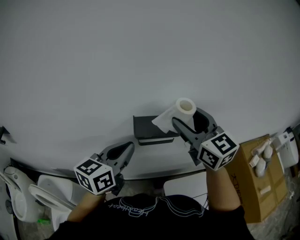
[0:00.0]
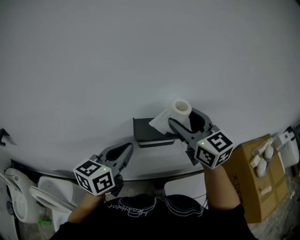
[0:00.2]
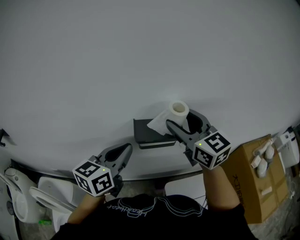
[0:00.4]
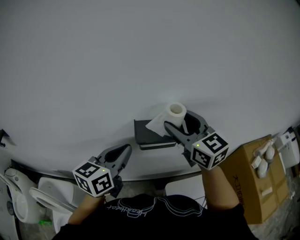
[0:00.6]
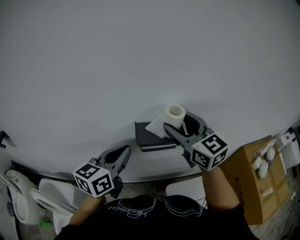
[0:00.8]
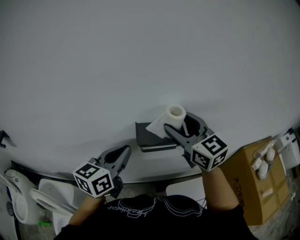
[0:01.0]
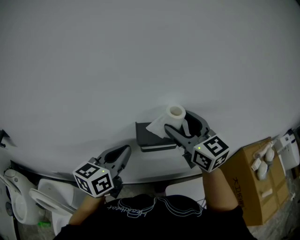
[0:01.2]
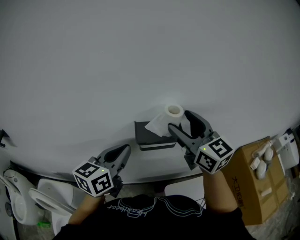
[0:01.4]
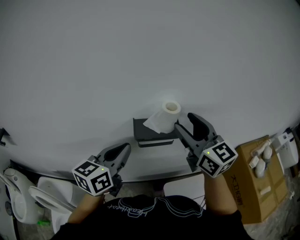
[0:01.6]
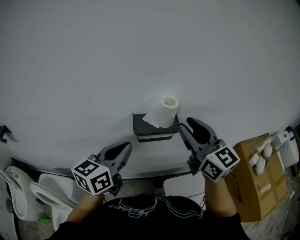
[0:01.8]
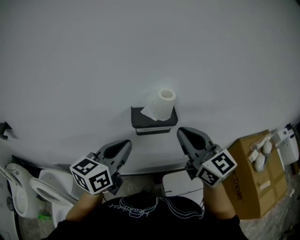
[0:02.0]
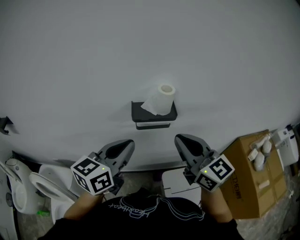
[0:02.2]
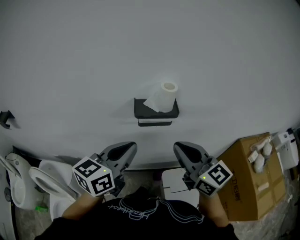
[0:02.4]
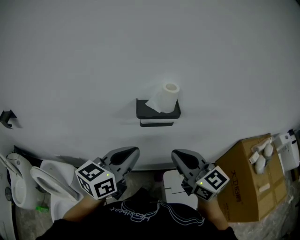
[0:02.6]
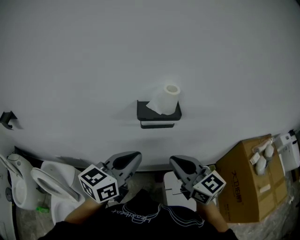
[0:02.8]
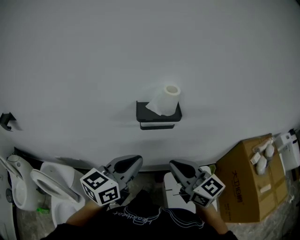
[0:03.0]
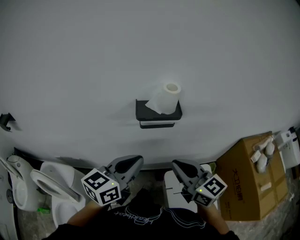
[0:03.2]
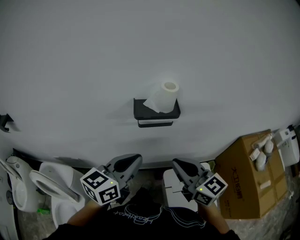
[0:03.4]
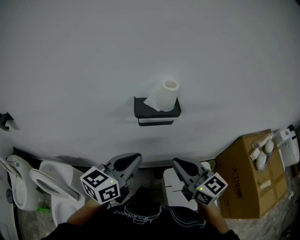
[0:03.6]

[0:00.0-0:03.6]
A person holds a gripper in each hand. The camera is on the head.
0:00.0 to 0:01.8: The right gripper moves about 5 cm.
0:01.8 to 0:03.6: The right gripper heads downward and backward, covering approximately 20 cm. Meanwhile the left gripper travels backward by some 10 cm.

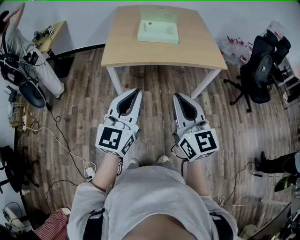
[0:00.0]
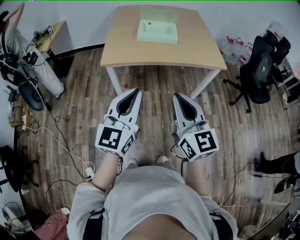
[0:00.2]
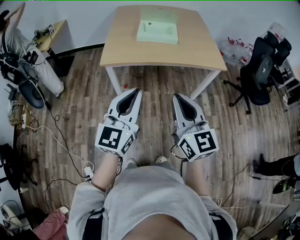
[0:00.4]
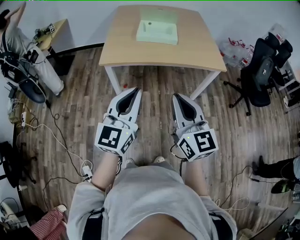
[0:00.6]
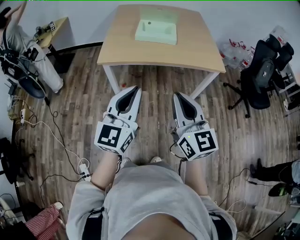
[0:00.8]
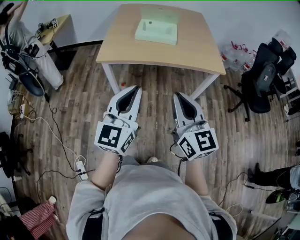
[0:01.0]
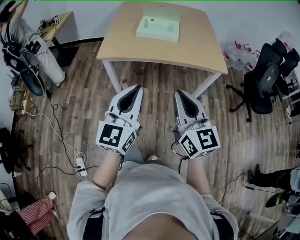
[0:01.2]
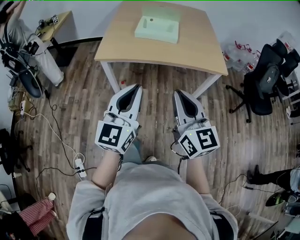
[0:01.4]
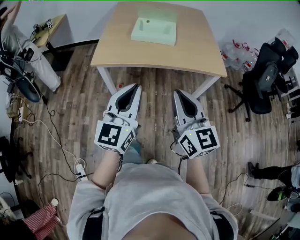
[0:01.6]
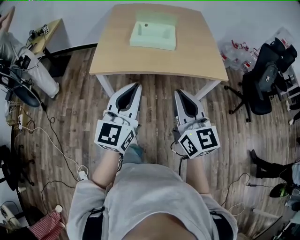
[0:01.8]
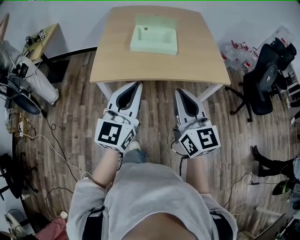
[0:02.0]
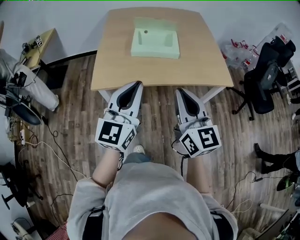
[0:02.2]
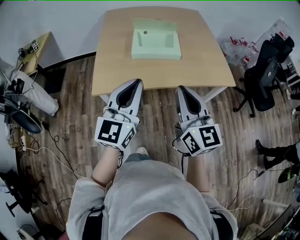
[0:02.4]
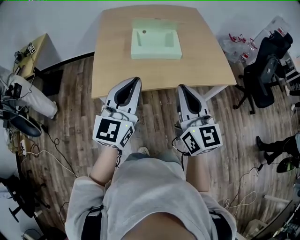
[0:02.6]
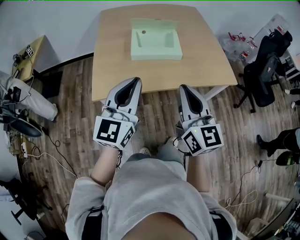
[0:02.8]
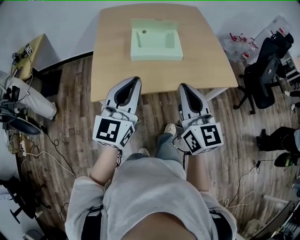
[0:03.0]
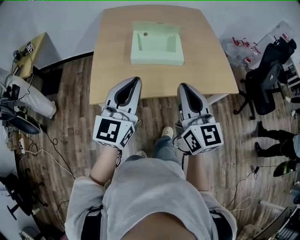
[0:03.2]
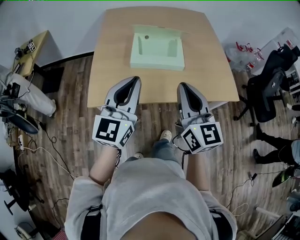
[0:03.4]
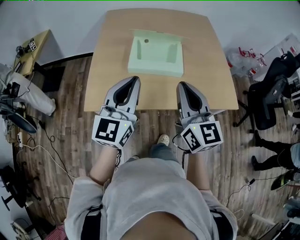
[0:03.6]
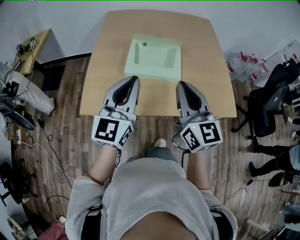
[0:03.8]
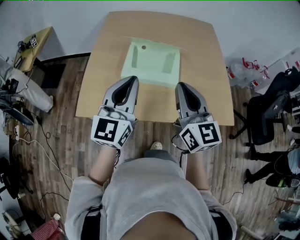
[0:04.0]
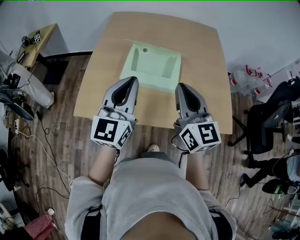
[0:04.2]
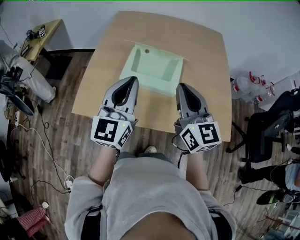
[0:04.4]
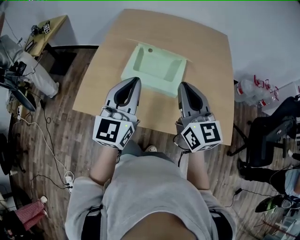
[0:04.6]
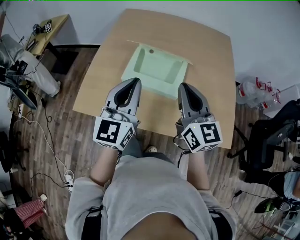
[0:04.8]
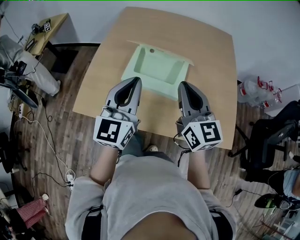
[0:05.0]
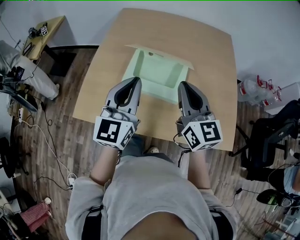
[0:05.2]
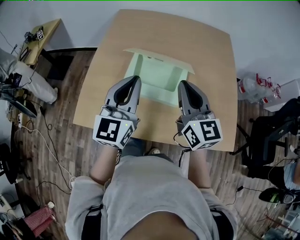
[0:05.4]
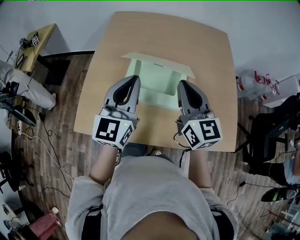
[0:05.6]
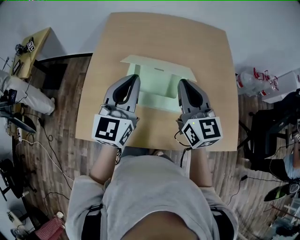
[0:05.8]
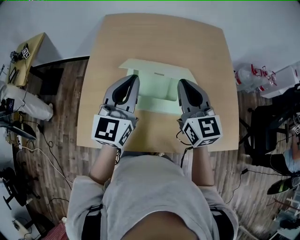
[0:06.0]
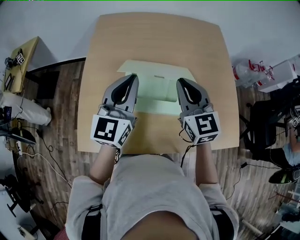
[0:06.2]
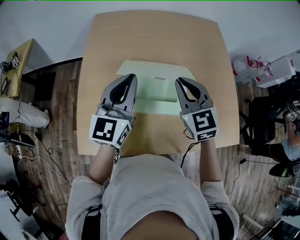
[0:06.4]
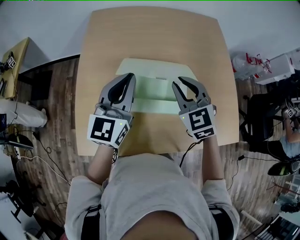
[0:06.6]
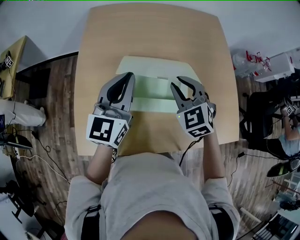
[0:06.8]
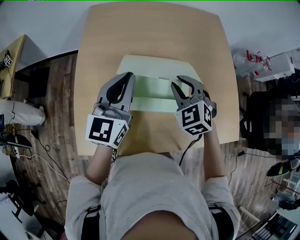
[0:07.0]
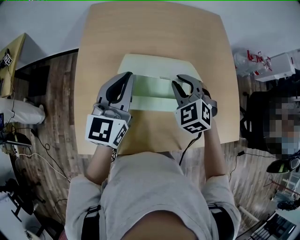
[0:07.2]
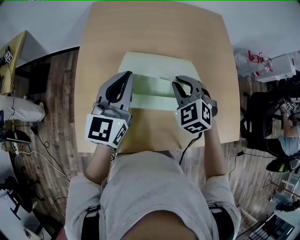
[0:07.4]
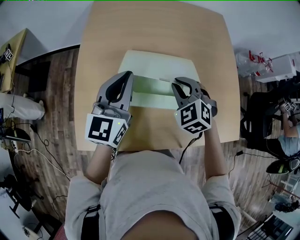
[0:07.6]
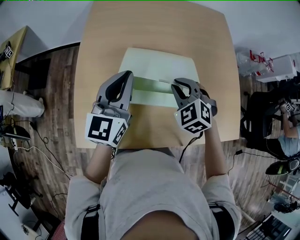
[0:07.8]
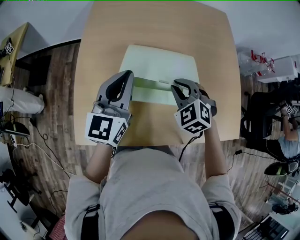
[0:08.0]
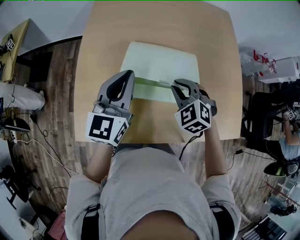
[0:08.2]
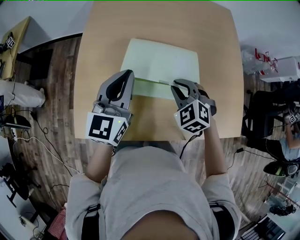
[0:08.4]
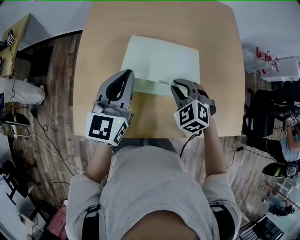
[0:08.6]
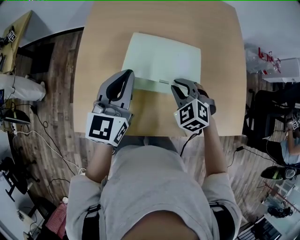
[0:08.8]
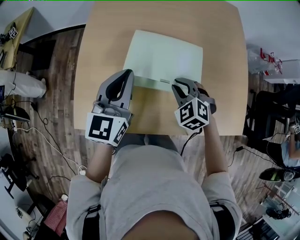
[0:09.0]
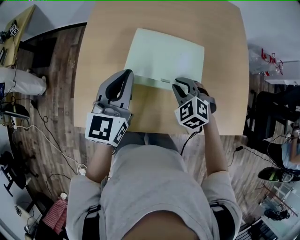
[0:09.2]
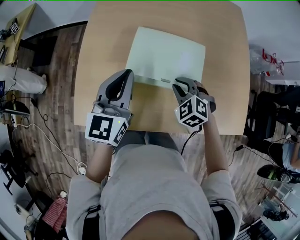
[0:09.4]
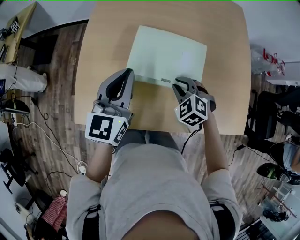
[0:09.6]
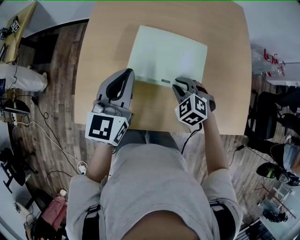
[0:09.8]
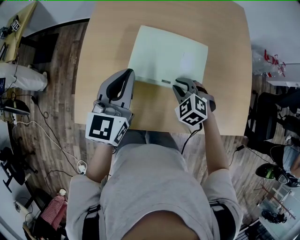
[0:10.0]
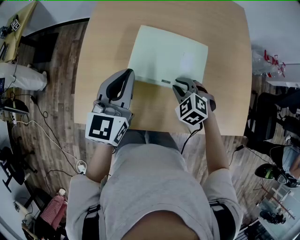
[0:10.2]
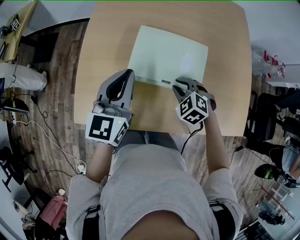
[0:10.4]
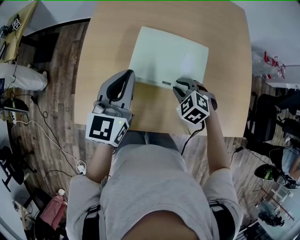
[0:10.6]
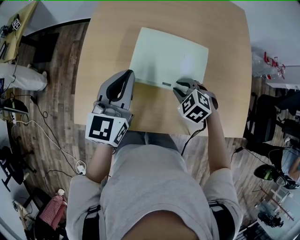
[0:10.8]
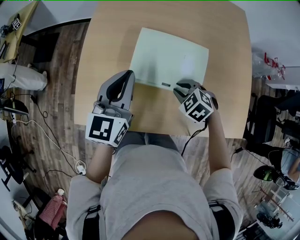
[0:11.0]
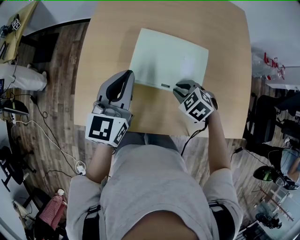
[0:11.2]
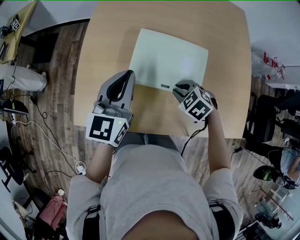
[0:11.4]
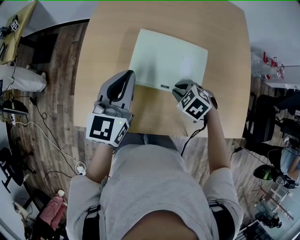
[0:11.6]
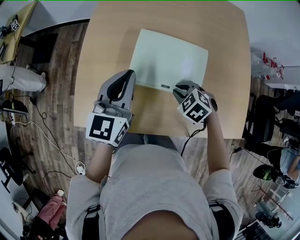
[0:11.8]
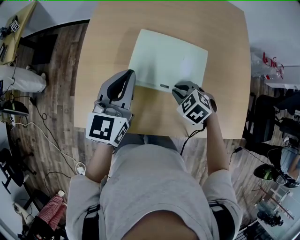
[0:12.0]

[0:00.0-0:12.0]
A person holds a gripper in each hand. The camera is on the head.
0:00.0 to 0:01.6: The grippers both shift forward and to the right by roughly 10 cm.
0:01.6 to 0:03.0: The two grippers go about 25 cm forward and to the left.
0:03.0 to 0:04.4: Both grippers move forward and to the right, some 25 cm.
0:04.4 to 0:06.0: Both grippers move forward, some 15 cm.
0:06.0 to 0:07.6: The right gripper goes roughly 15 cm downward, and tilts its fingers some 40 degrees downward; the left gripper shifts by about 5 cm.
0:07.6 to 0:09.0: The right gripper moves downward and backward, about 10 cm. Meanwhile the left gripper shifts some 5 cm backward.
0:09.0 to 0:10.4: There are only small adjustments of the grippers.
0:10.4 to 0:12.0: There are only small adjustments of the grippers.

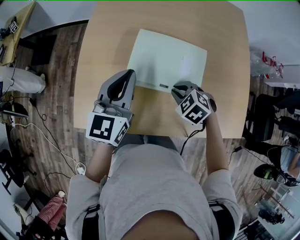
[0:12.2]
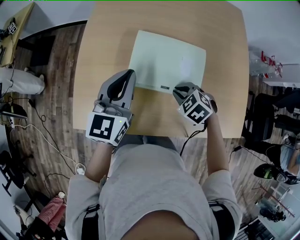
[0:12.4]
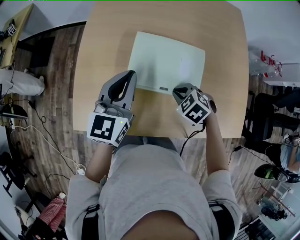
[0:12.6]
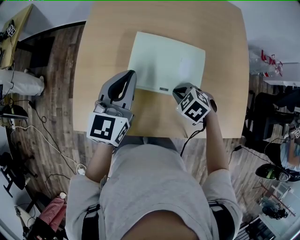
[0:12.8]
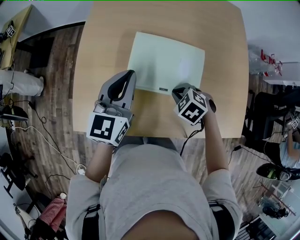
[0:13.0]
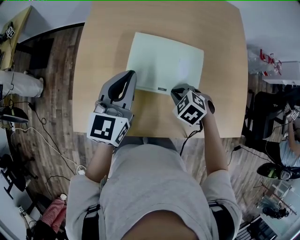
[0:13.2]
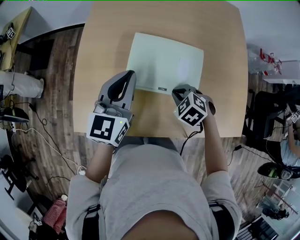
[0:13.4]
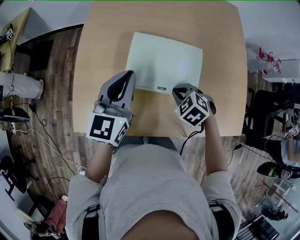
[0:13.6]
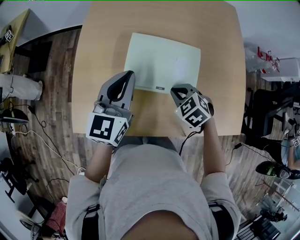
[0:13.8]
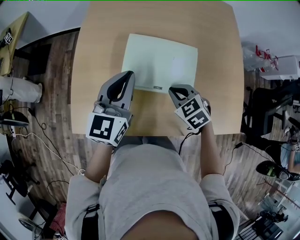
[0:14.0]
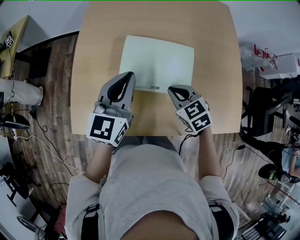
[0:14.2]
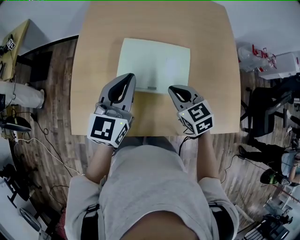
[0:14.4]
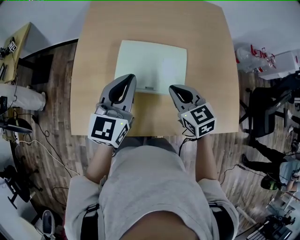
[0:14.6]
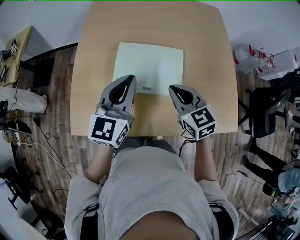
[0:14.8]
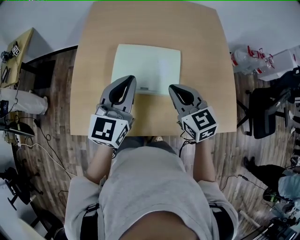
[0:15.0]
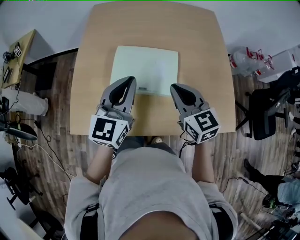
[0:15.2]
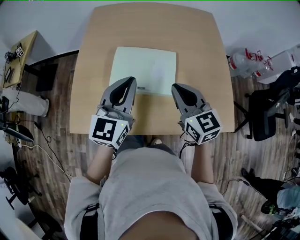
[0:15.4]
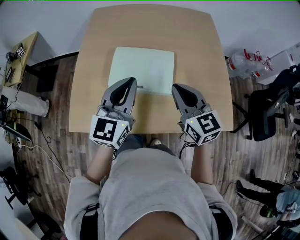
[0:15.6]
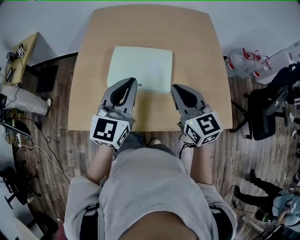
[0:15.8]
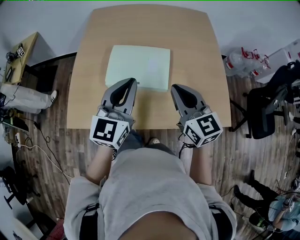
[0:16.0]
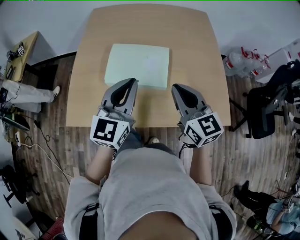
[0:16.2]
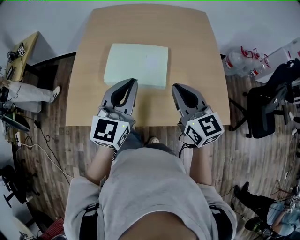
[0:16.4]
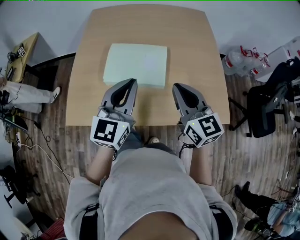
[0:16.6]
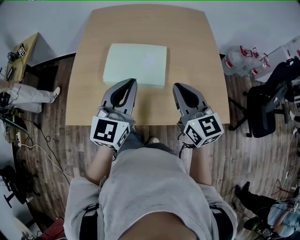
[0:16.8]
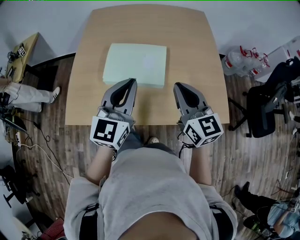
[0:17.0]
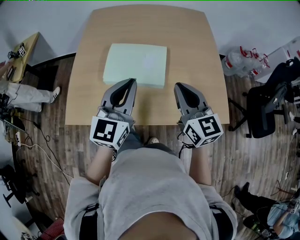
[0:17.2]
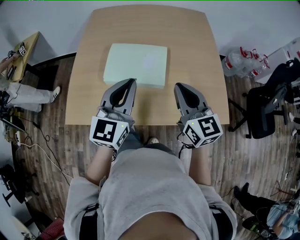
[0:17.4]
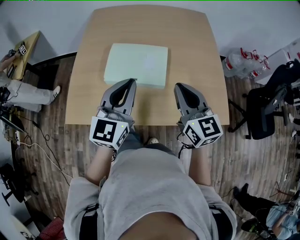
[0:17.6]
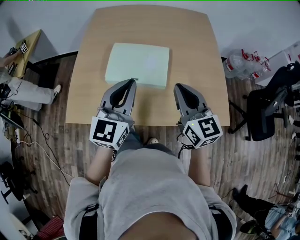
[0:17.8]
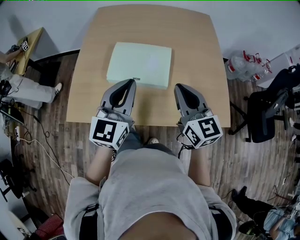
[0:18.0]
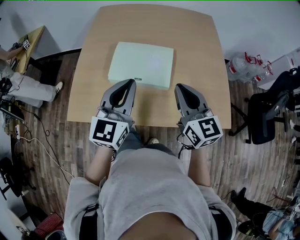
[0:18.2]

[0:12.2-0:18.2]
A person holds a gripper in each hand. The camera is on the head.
0:12.2 to 0:13.8: There are only small adjustments of the grippers.
0:13.8 to 0:15.2: The right gripper shifts some 15 cm upward, and tips its fingers upward by roughly 40 degrees. Meanwhile the left gripper heads to the right, backward and upward, covering roughly 10 cm.
0:15.2 to 0:16.6: Both grippers move backward and to the right, roughly 10 cm.
0:16.6 to 0:18.2: The grippers make only small movements.

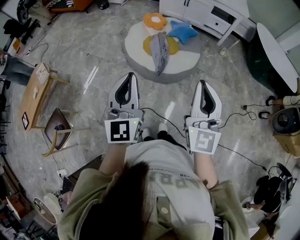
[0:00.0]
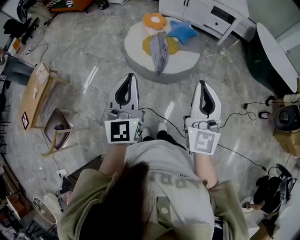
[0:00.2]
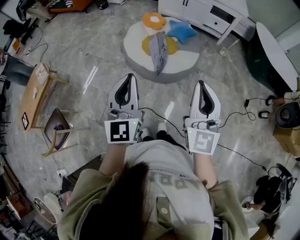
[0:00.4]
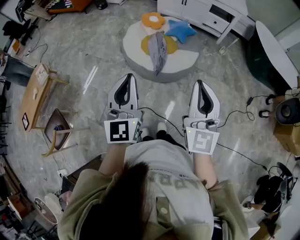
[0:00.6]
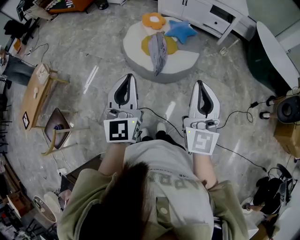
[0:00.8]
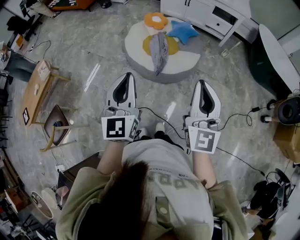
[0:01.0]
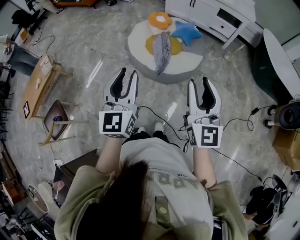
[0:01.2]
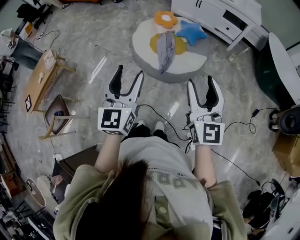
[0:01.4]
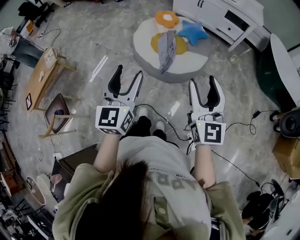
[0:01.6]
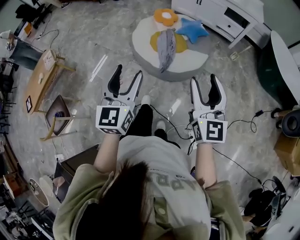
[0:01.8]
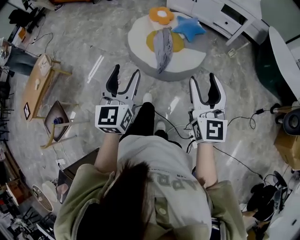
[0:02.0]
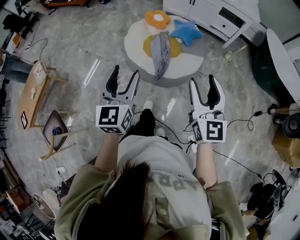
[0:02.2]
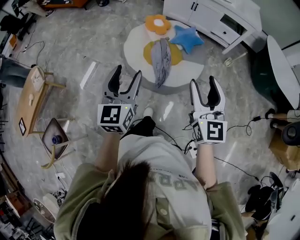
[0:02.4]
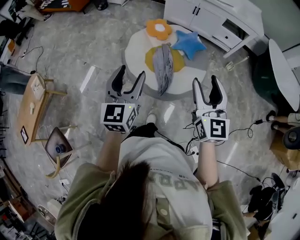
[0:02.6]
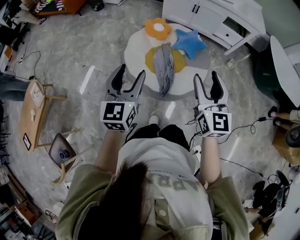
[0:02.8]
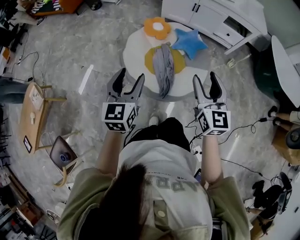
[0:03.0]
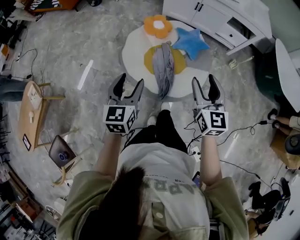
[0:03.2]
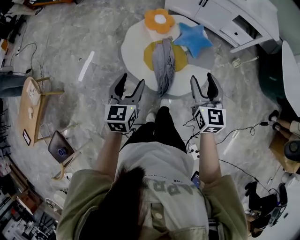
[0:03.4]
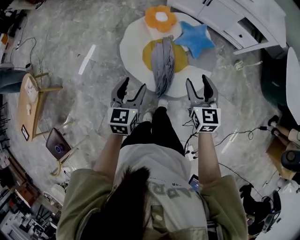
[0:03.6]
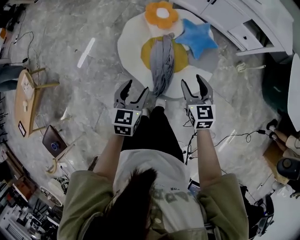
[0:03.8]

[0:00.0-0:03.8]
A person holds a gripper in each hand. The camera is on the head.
0:00.0 to 0:01.2: The right gripper is displaced to the right by some 5 cm.
0:01.2 to 0:02.6: The grippers both shift forward by approximately 25 cm. The left gripper opens its fingers.
0:02.6 to 0:03.8: The grippers both shift downward and forward by about 30 cm. The left gripper changes its angle by roughly 30 degrees. Meanwhile the right gripper turns by approximately 30 degrees.
